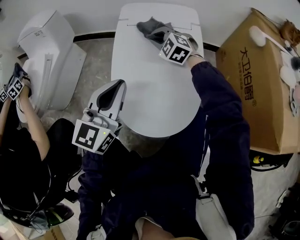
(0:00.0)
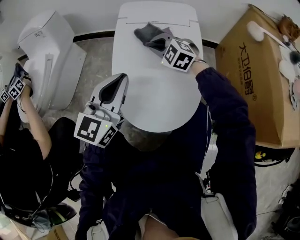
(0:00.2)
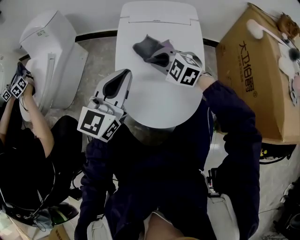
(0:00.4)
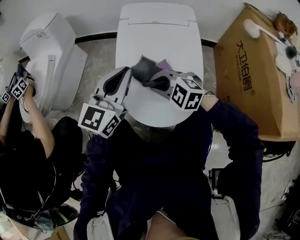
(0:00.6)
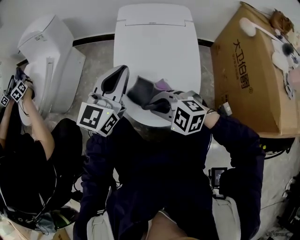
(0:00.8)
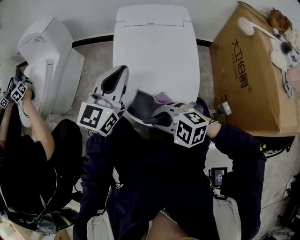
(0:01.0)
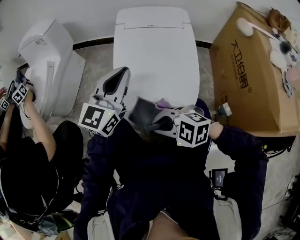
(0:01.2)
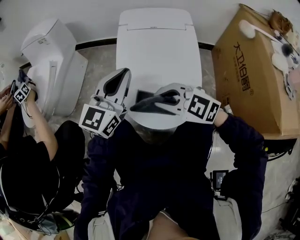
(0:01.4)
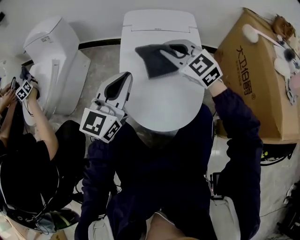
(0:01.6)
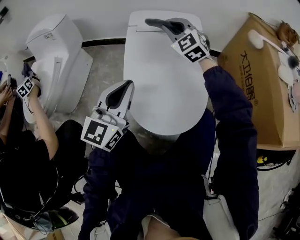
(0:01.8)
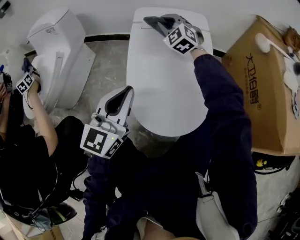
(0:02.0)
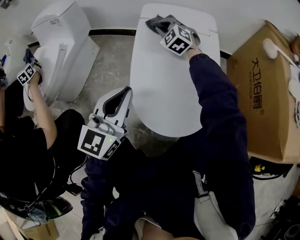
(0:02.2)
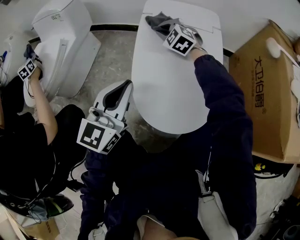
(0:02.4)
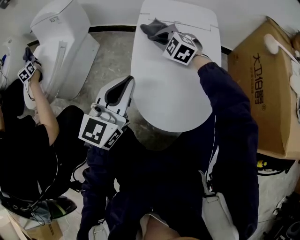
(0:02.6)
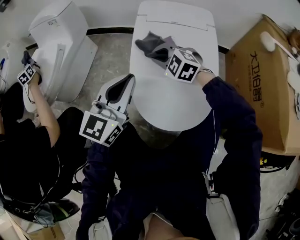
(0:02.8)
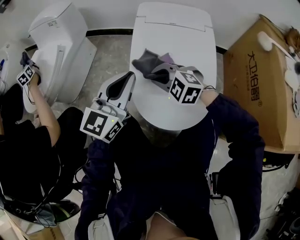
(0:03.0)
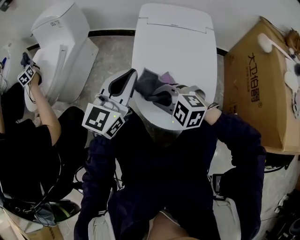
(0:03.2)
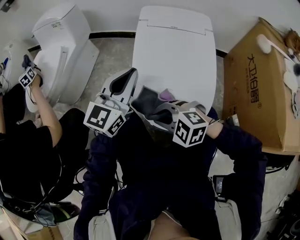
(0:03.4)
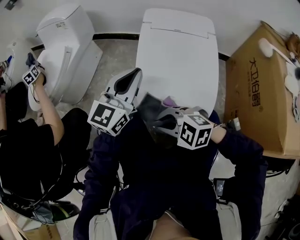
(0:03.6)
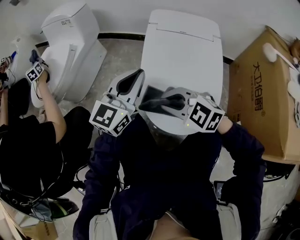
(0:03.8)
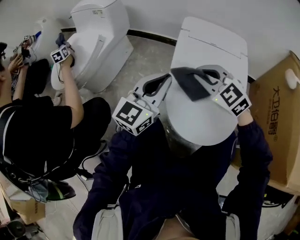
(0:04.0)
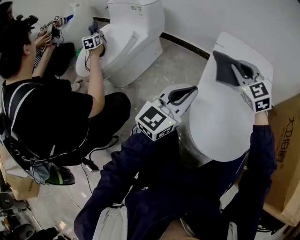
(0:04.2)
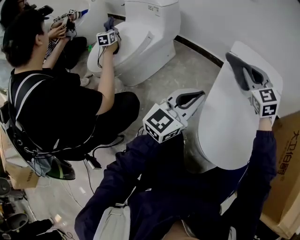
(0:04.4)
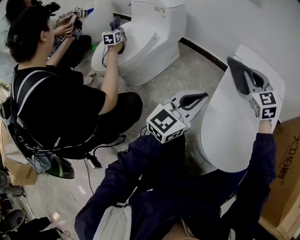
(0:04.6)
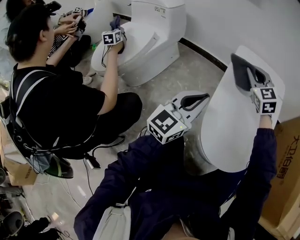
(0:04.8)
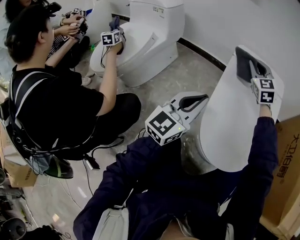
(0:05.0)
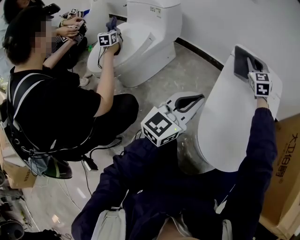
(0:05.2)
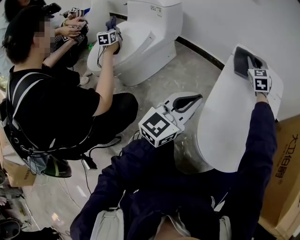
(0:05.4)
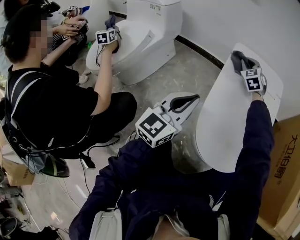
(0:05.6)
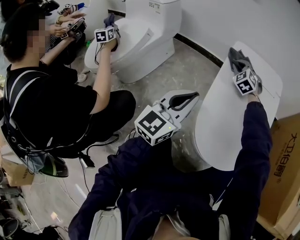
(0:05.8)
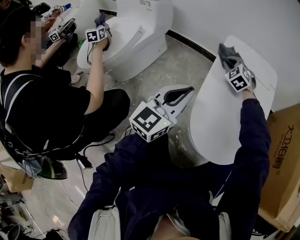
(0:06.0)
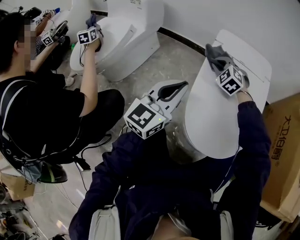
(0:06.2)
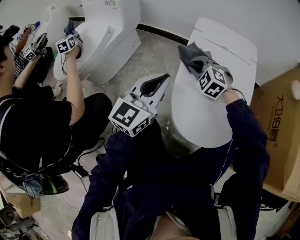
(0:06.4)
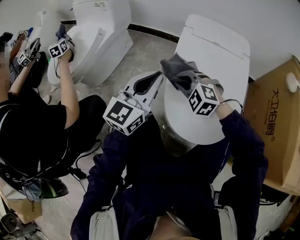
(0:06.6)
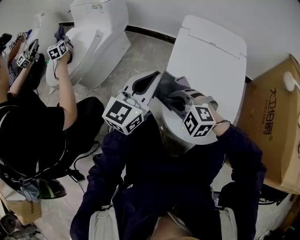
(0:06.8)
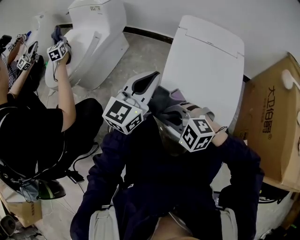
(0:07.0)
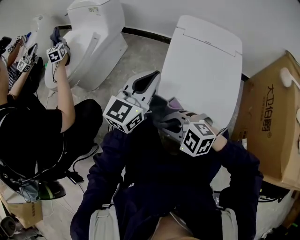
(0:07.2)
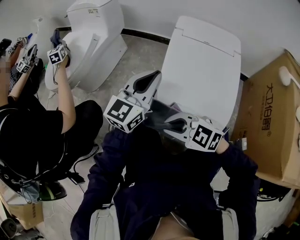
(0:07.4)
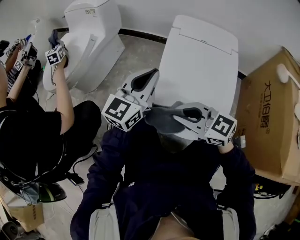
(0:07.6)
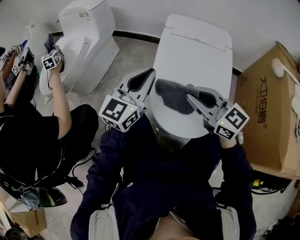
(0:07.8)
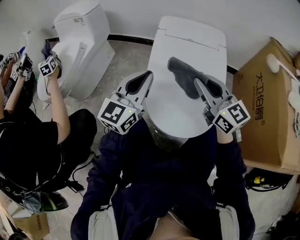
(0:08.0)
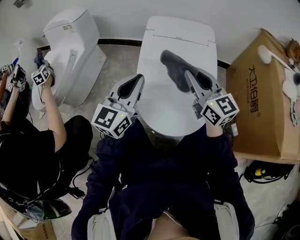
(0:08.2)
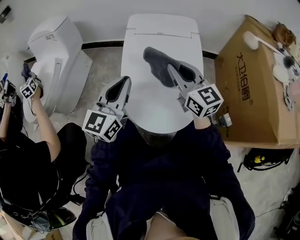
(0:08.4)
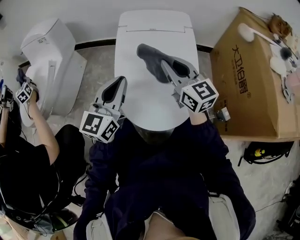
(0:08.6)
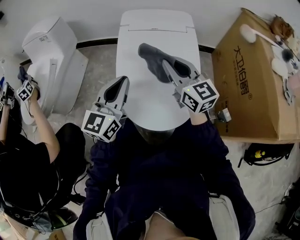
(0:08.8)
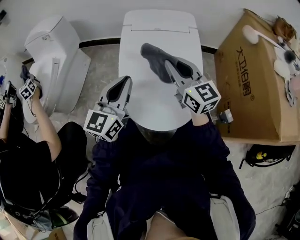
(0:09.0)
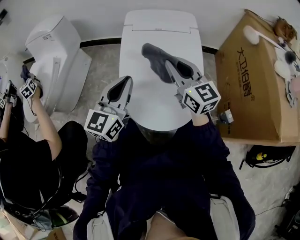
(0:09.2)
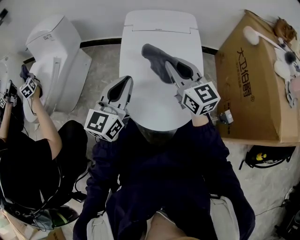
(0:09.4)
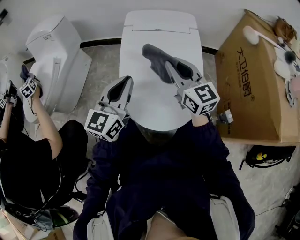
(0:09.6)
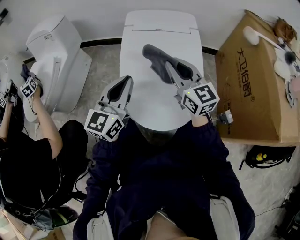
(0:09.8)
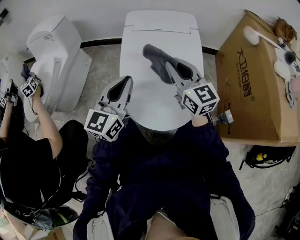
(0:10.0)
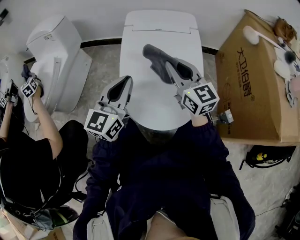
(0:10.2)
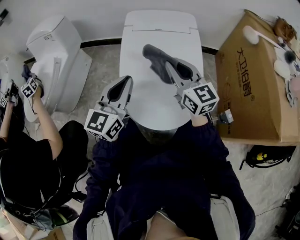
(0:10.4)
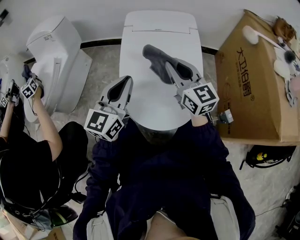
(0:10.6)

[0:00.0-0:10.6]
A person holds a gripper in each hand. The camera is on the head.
0:00.0 to 0:01.6: The right gripper heads upward, covering roughly 10 cm, travels backward and back again, approximately 40 cm each way, and turns by approximately 30 degrees.
0:01.6 to 0:03.0: The right gripper heads downward and to the left, covering approximately 15 cm, goes forward and returns, approximately 20 cm each way, and swivels some 30 degrees.
0:03.0 to 0:04.6: The left gripper travels to the left by about 5 cm. Meanwhile the right gripper moves forward and upward, roughly 20 cm, and rotates approximately 30 degrees.
0:04.6 to 0:06.0: The right gripper goes about 15 cm downward and forward, and turns by about 30 degrees.
0:06.0 to 0:07.6: The right gripper shifts by some 40 cm, and changes its angle by roughly 60 degrees.
0:07.6 to 0:09.0: The left gripper ends up about 5 cm from where it was; the right gripper ends up roughly 20 cm from where it was, and changes its angle by approximately 50 degrees.
0:09.0 to 0:10.6: Both grippers stay about where they are.

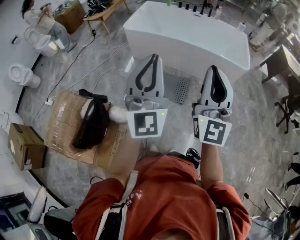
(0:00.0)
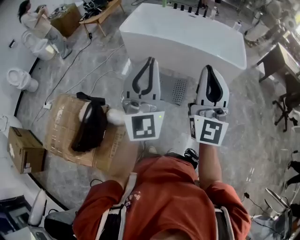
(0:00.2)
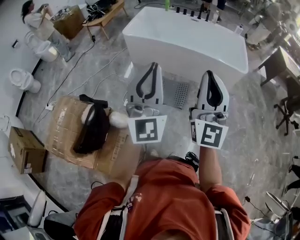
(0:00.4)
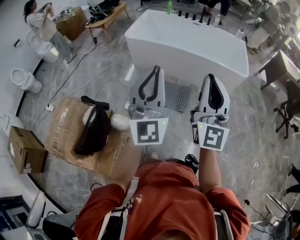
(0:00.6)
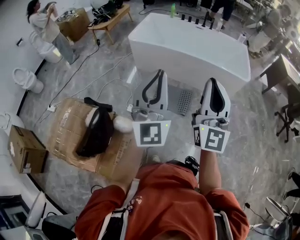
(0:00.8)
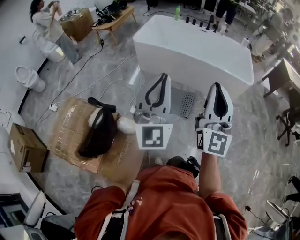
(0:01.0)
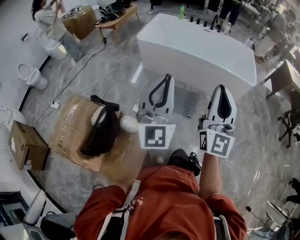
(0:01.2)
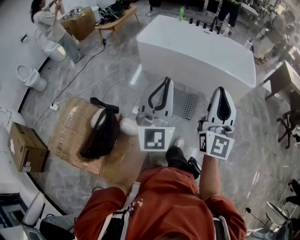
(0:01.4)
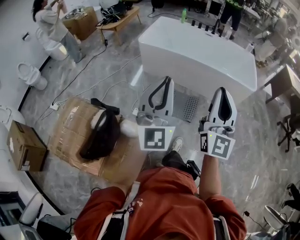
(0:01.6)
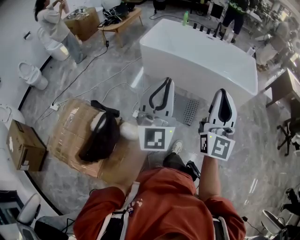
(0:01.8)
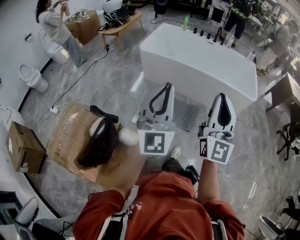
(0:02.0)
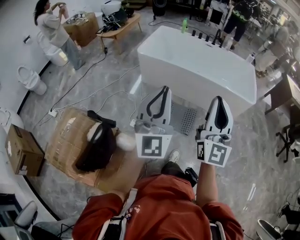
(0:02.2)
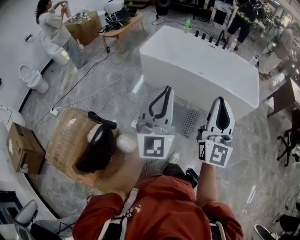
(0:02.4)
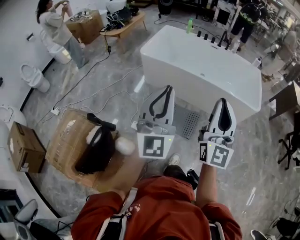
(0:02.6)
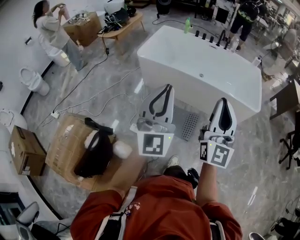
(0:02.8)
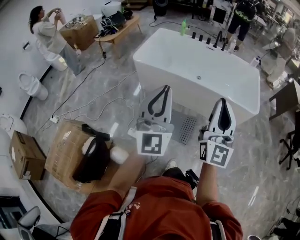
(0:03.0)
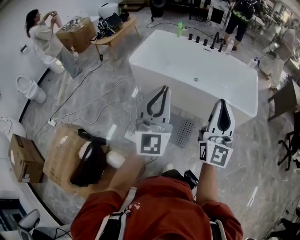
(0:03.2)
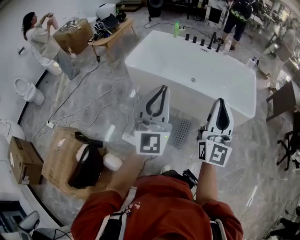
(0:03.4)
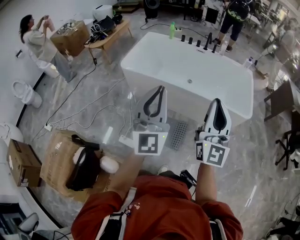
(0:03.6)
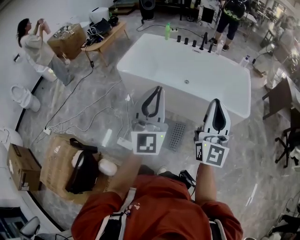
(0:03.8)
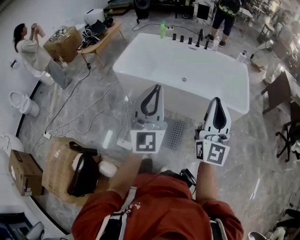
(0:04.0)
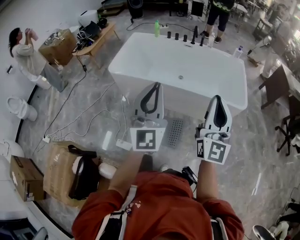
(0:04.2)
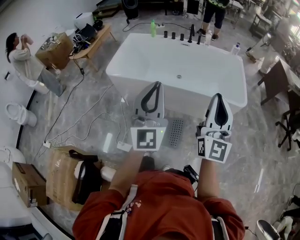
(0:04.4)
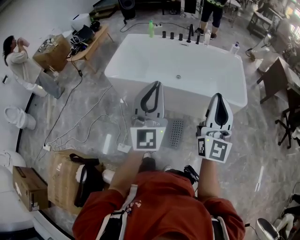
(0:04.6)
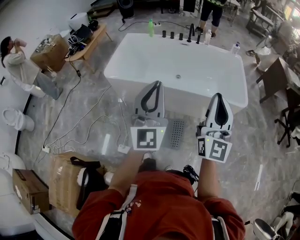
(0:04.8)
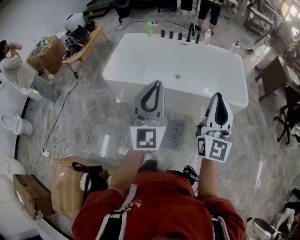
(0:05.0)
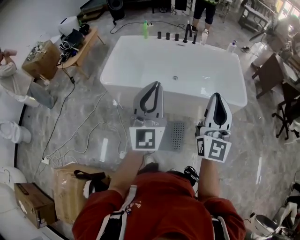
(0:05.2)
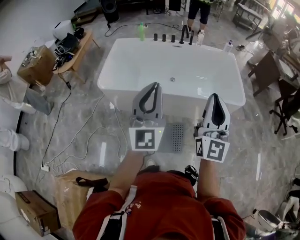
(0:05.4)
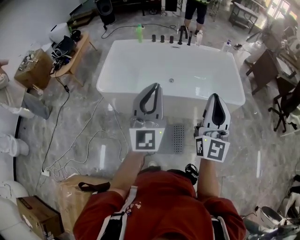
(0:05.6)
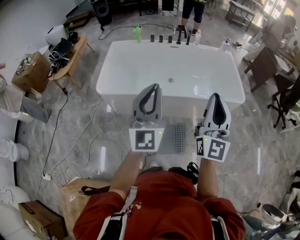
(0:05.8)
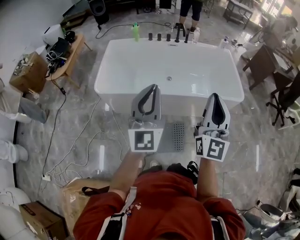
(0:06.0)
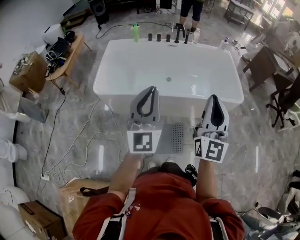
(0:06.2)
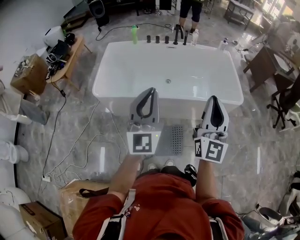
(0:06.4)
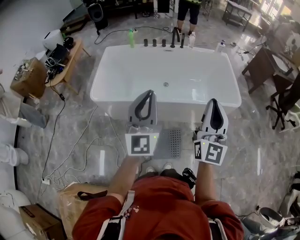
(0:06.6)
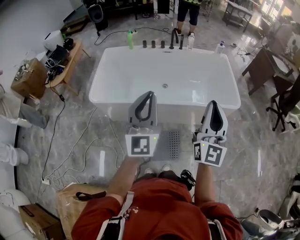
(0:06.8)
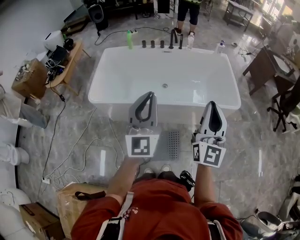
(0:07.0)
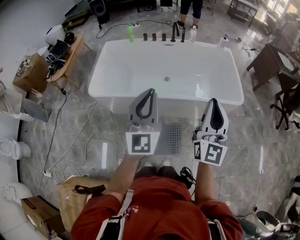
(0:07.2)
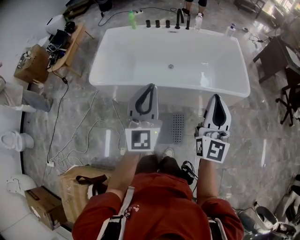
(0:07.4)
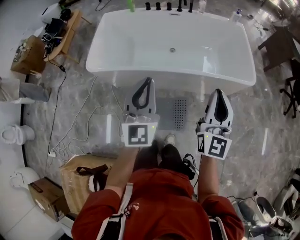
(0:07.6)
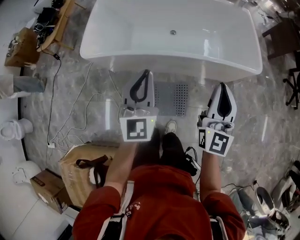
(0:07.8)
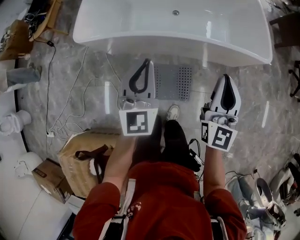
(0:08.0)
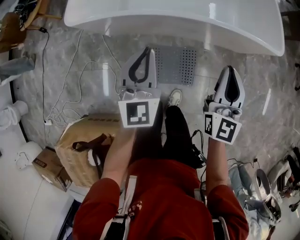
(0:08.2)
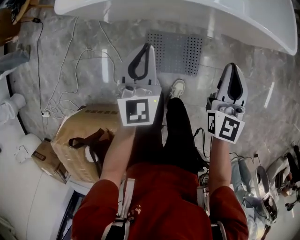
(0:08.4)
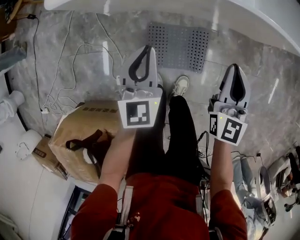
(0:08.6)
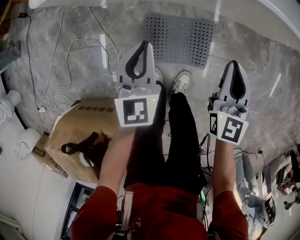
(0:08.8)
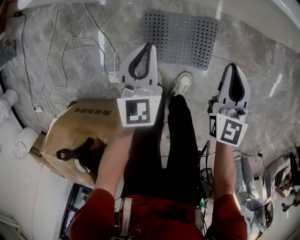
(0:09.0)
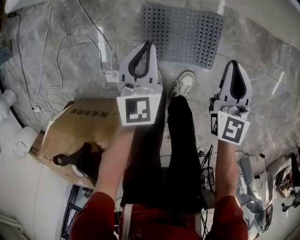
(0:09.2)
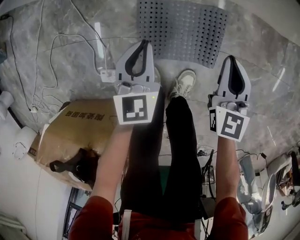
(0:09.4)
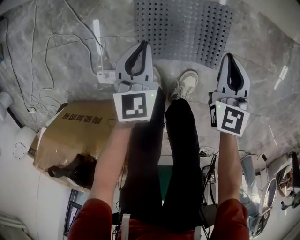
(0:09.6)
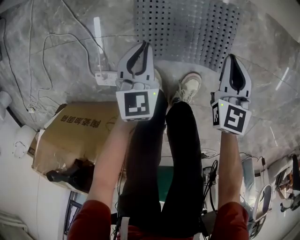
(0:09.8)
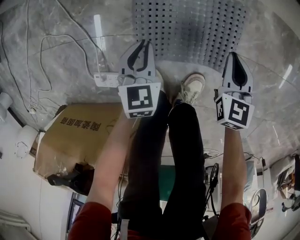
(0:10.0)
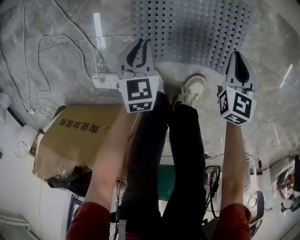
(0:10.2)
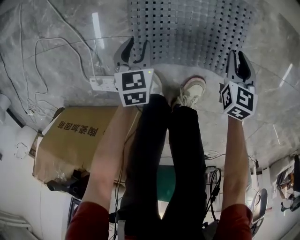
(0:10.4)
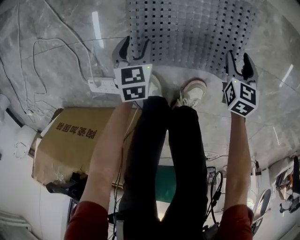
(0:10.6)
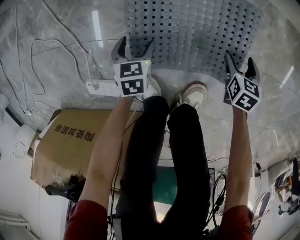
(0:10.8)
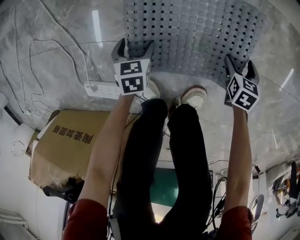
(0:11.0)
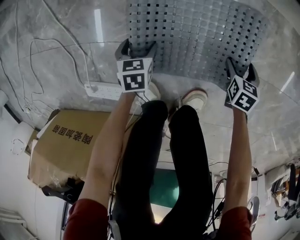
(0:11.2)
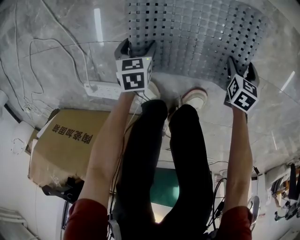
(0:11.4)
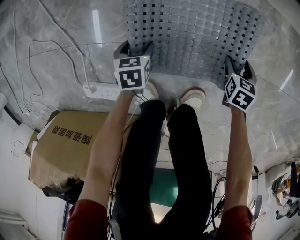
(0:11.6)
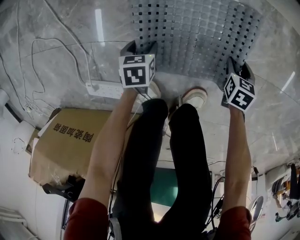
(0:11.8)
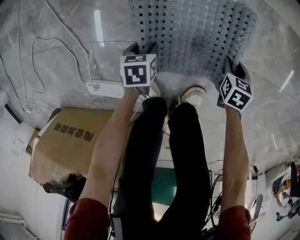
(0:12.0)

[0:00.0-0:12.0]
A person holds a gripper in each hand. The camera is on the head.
0:00.0 to 0:01.6: The two grippers go roughly 5 cm to the left.
0:01.6 to 0:03.0: The grippers both shift forward by approximately 20 cm.
0:03.0 to 0:04.4: The left gripper goes roughly 15 cm forward and to the right; the right gripper heads to the right and forward, covering some 15 cm.
0:04.4 to 0:06.0: The two grippers go approximately 20 cm to the left and forward.
0:06.0 to 0:07.6: The two grippers go roughly 15 cm downward, to the right and forward.
0:07.6 to 0:09.0: Both grippers travel together downward, roughly 50 cm. The right gripper tilts its fingers approximately 30 degrees downward, while the left gripper swivels some 30 degrees.
0:09.0 to 0:10.4: Both grippers move downward, about 40 cm. The right gripper changes its angle by roughly 30 degrees. The left gripper points its fingers some 30 degrees further downward.
0:10.4 to 0:12.0: The two grippers go about 10 cm downward. The left gripper changes its angle by some 30 degrees, and opens and closes again; the right gripper swivels approximately 20 degrees, and opens and closes again.

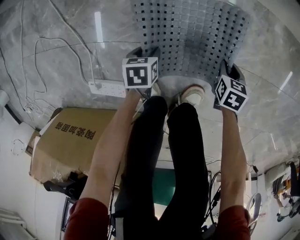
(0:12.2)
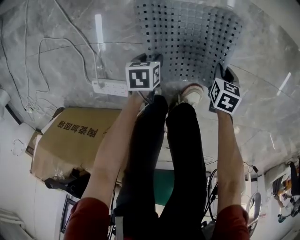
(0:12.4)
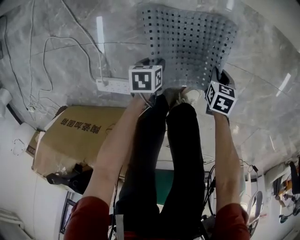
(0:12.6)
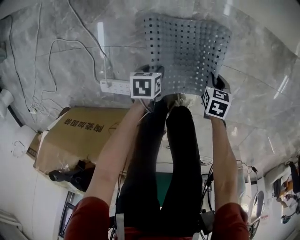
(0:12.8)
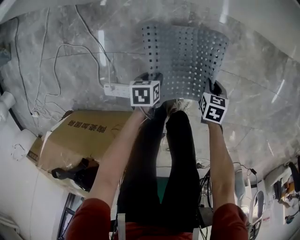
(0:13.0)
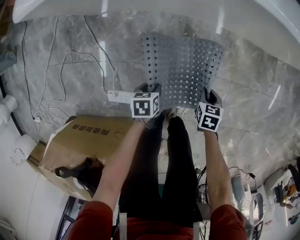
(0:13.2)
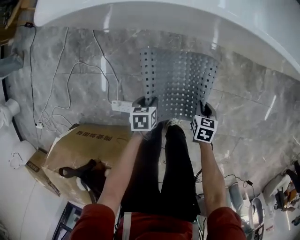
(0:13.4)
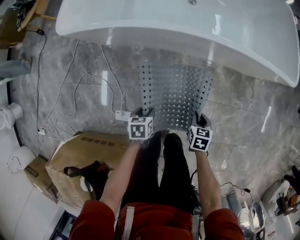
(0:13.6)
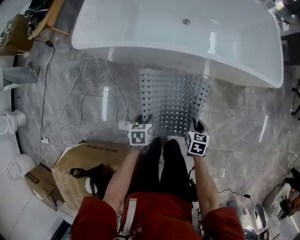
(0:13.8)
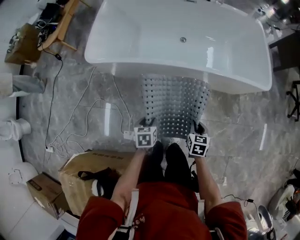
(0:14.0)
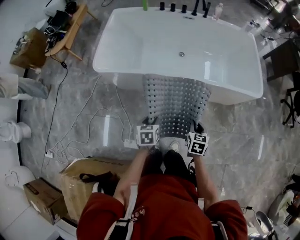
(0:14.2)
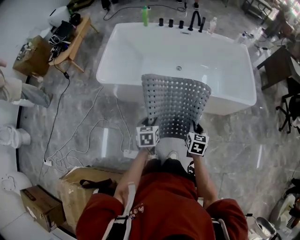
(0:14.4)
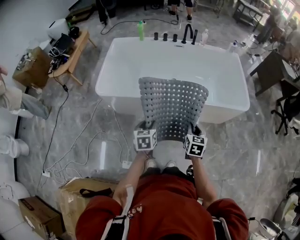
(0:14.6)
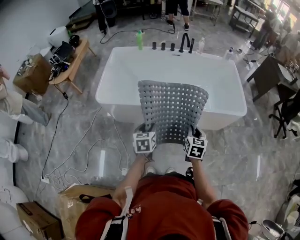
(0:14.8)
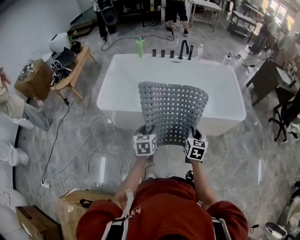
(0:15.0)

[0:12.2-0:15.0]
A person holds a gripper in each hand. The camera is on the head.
0:12.2 to 0:13.6: The grippers both shift upward by approximately 40 cm.
0:13.6 to 0:15.0: The two grippers go approximately 40 cm upward. The left gripper points its fingers some 30 degrees further upward. The right gripper points its fingers about 30 degrees further upward.
